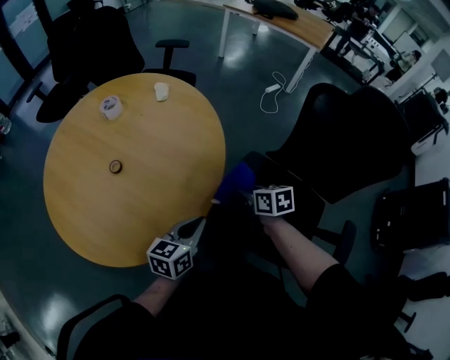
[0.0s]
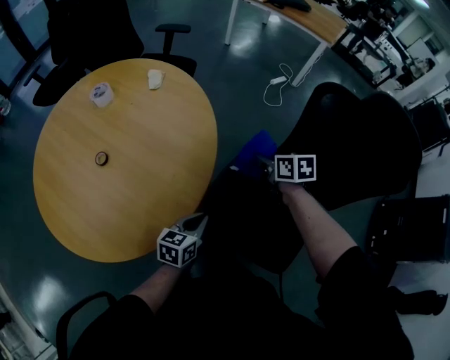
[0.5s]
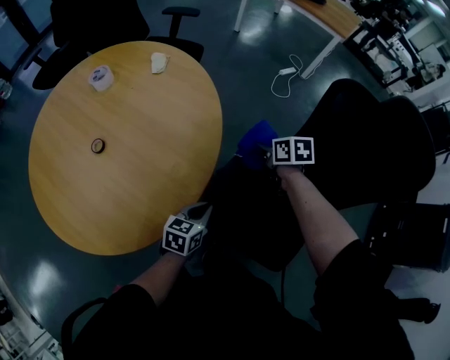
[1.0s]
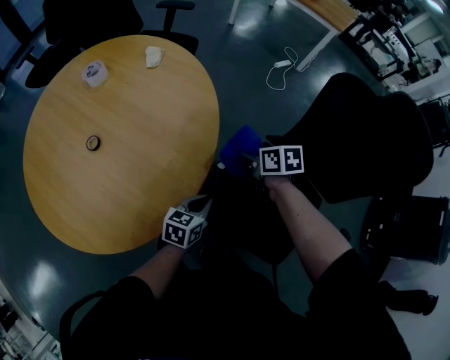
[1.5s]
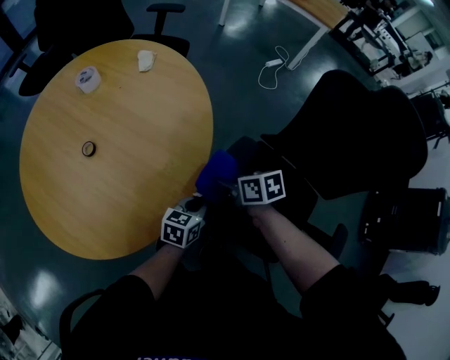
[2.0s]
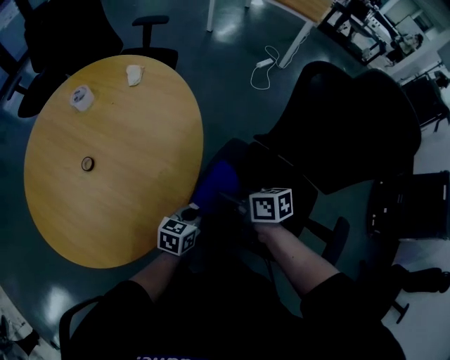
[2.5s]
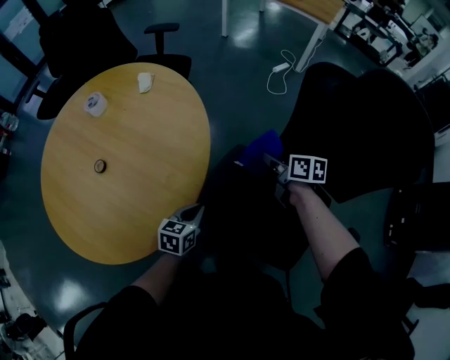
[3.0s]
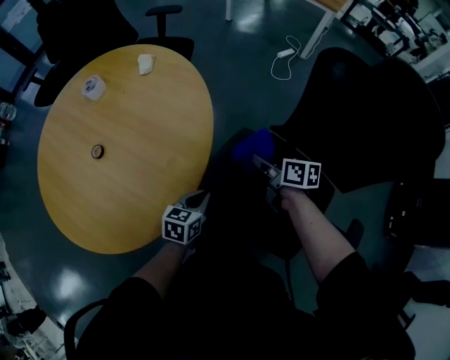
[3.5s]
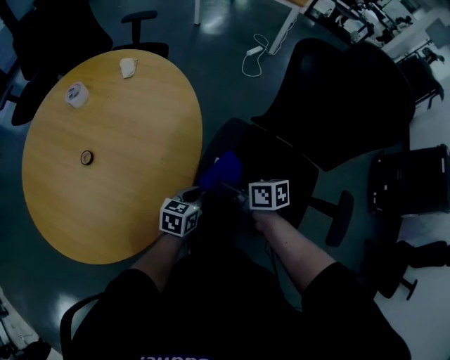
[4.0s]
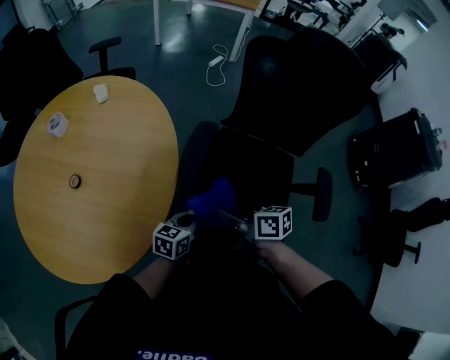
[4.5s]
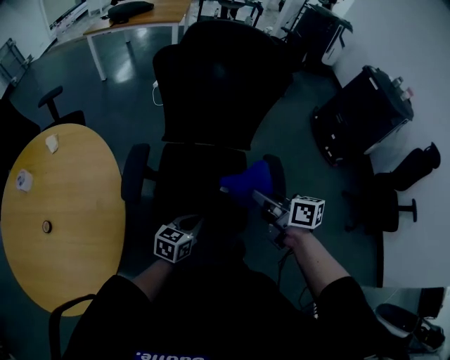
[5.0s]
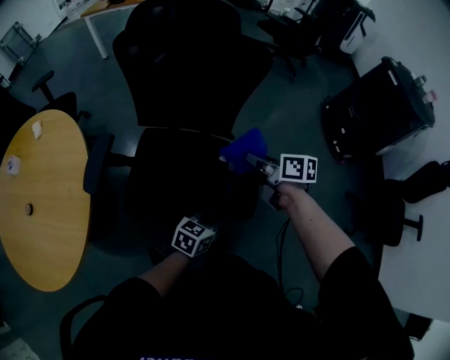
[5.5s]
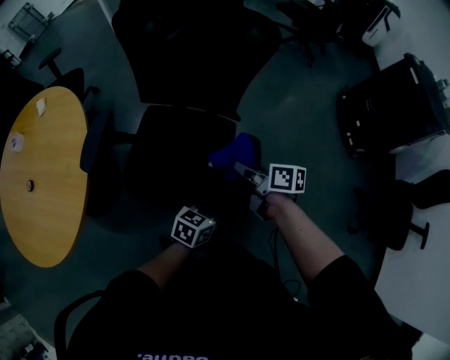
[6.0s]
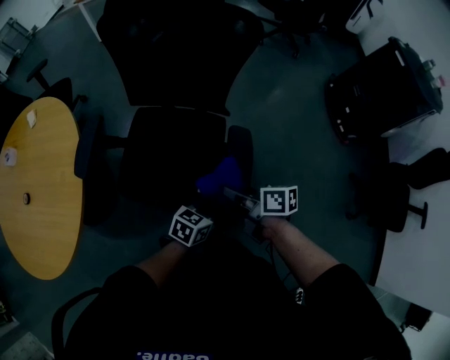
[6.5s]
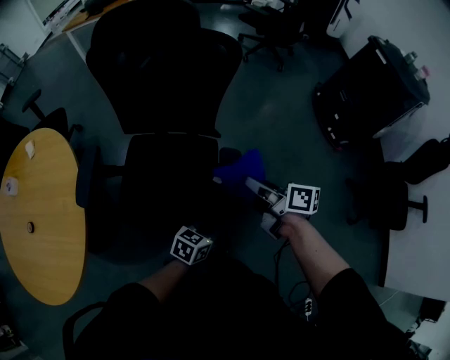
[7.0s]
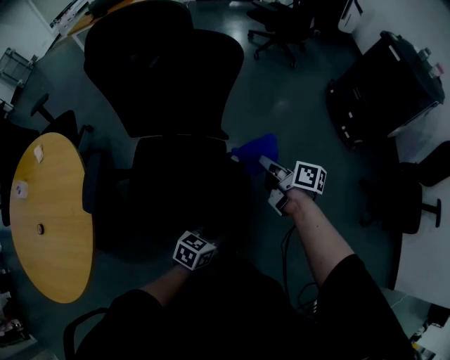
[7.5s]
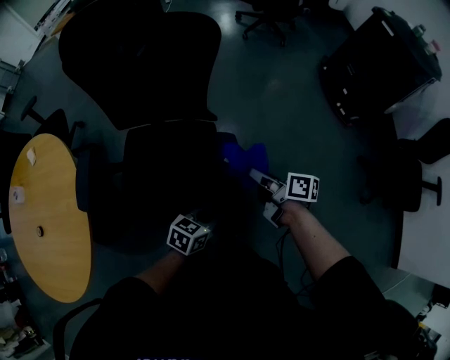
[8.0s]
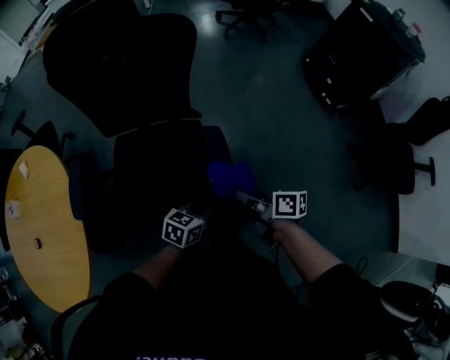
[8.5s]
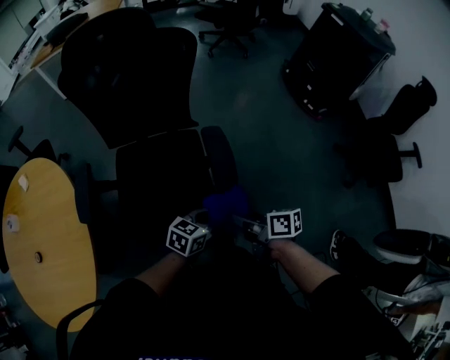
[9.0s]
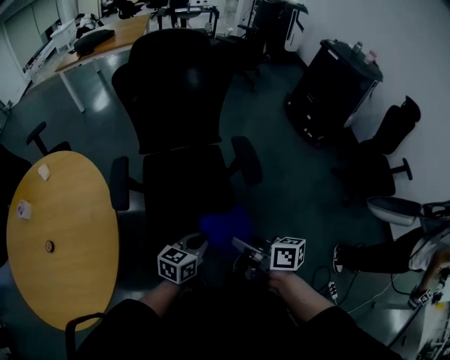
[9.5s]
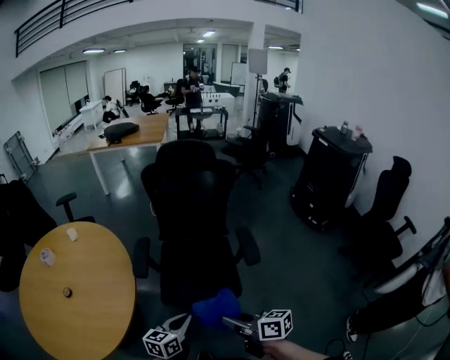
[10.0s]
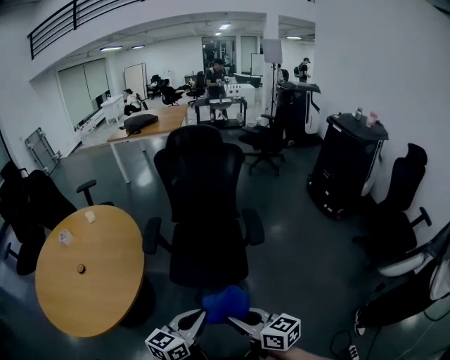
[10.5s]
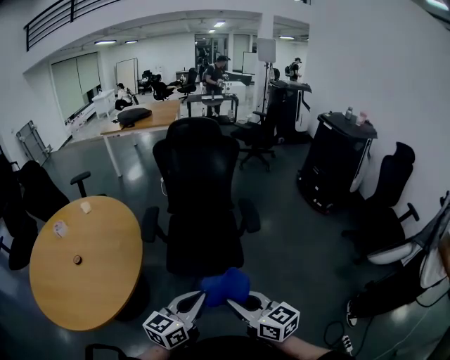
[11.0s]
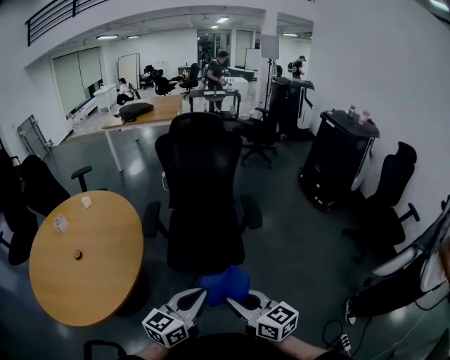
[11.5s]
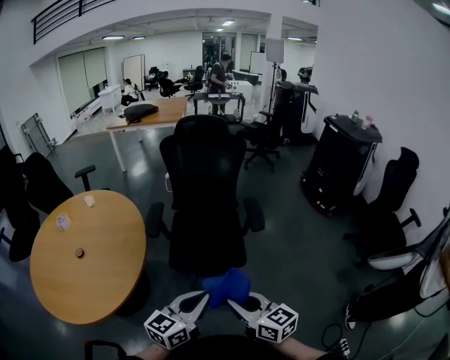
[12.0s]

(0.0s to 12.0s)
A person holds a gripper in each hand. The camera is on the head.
0.0s - 2.0s: The left gripper goes roughly 15 cm downward, to the right and forward, while the right gripper goes forward and returns, about 15 cm each way.
2.0s - 4.0s: The right gripper travels backward by some 5 cm, and moves some 20 cm to the right and comes back.
4.0s - 6.0s: Both grippers are carried about 50 cm. The left gripper turns by approximately 30 degrees. The right gripper changes its angle by about 30 degrees.
6.0s - 8.0s: The right gripper goes forward and backward, about 20 cm each way, reversing 2 times.
8.0s - 10.0s: Both grippers move backward, to the left and upward, some 50 cm. The left gripper turns by some 30 degrees. The right gripper changes its angle by approximately 30 degrees.
10.0s - 12.0s: The left gripper goes some 20 cm backward and upward; the right gripper travels backward by roughly 10 cm, and turns by roughly 30 degrees.

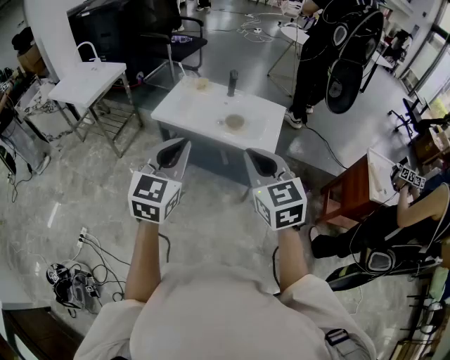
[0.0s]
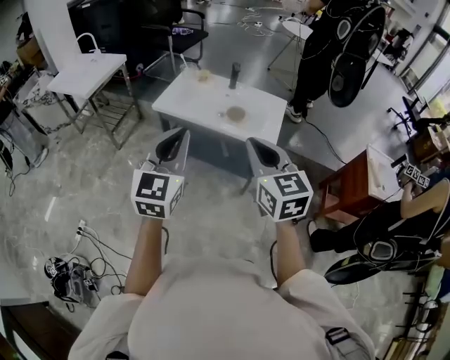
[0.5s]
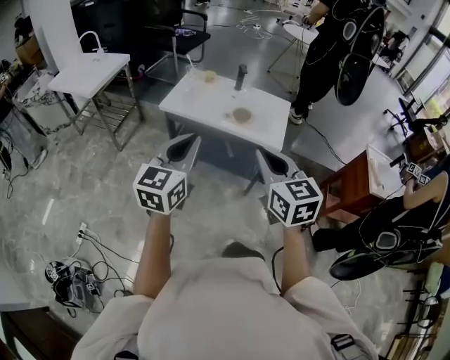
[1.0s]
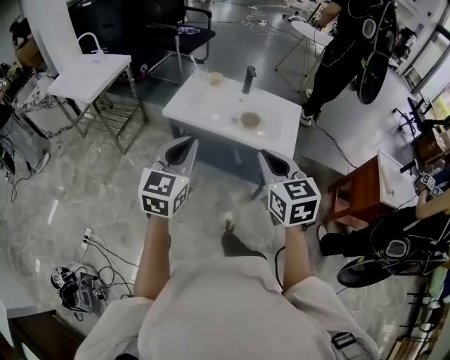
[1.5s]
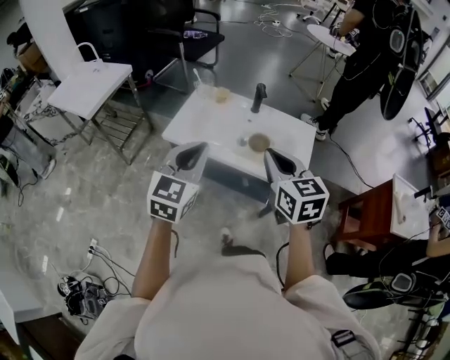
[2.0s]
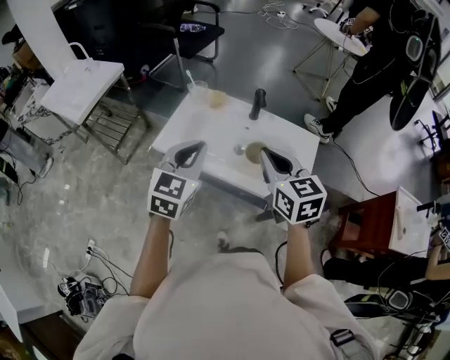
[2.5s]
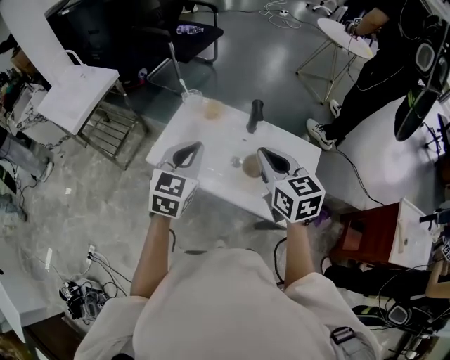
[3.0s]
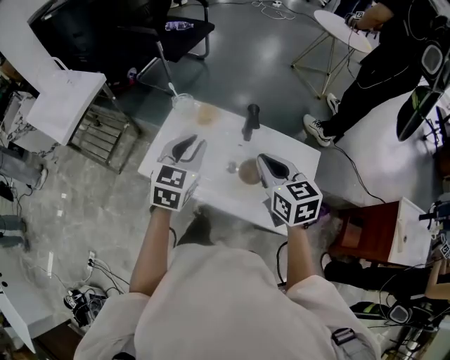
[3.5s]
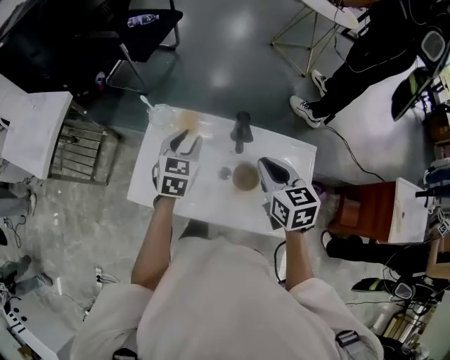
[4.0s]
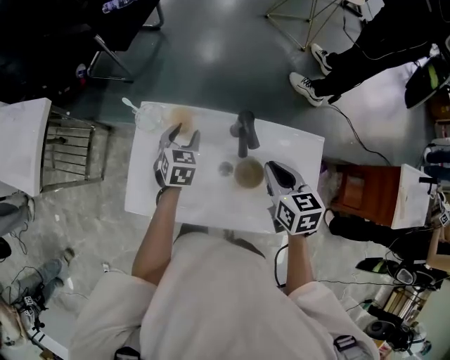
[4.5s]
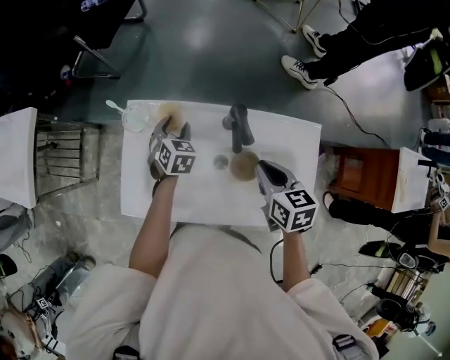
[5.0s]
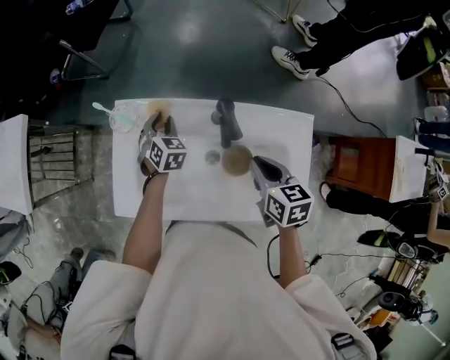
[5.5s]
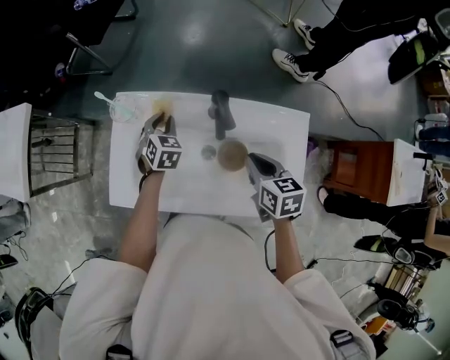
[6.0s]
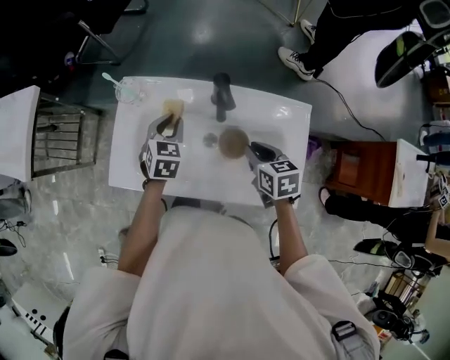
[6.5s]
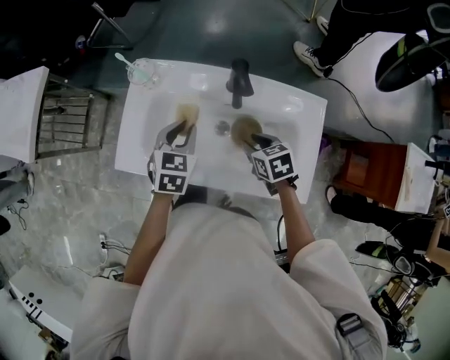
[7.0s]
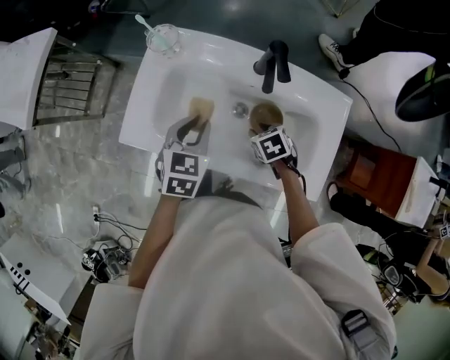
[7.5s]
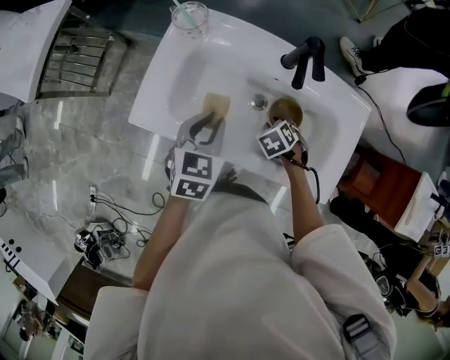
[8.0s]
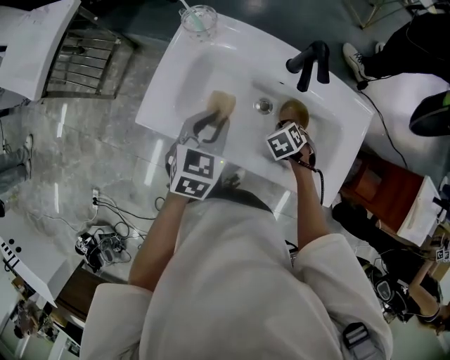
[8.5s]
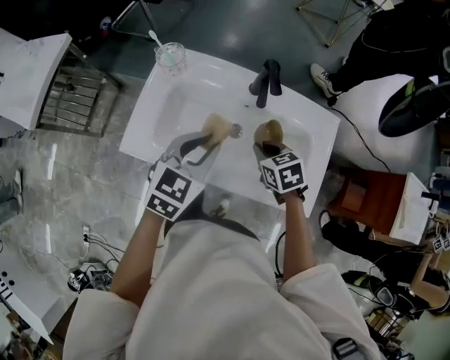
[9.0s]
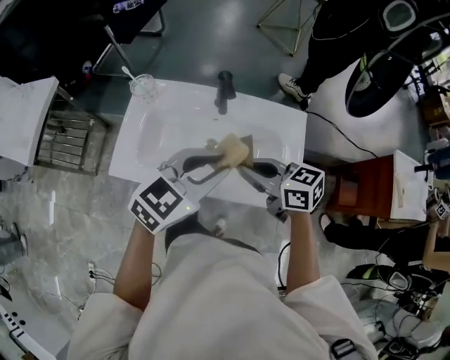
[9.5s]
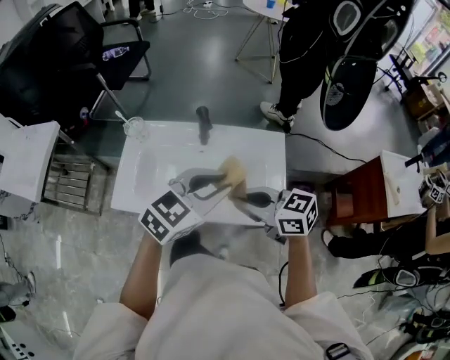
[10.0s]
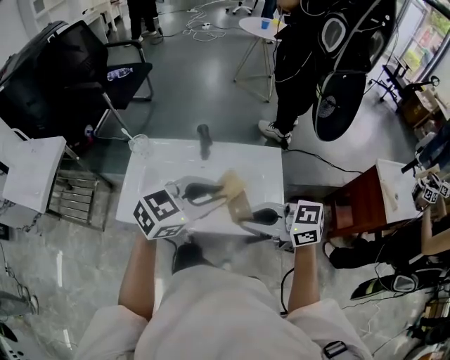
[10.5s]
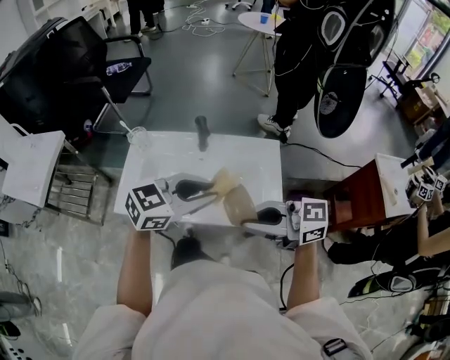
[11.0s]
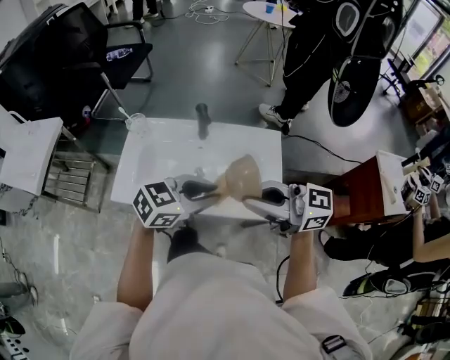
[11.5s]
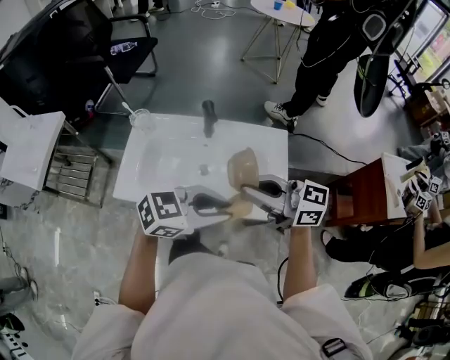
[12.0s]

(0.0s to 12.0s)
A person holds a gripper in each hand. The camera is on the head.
0.0s - 2.0s: Both grippers travel together forward, approximately 25 cm.
2.0s - 4.0s: The grippers both shift forward by approximately 40 cm. The left gripper opens up.
4.0s - 6.0s: The left gripper shifts some 20 cm downward and forward, while the right gripper heads downward, covering some 15 cm.
6.0s - 8.0s: The right gripper heads downward, covering about 20 cm, and tips its fingers downward by some 40 degrees. The left gripper moves about 20 cm, and swivels roughly 20 degrees.
8.0s - 10.0s: The right gripper travels upward by roughly 35 cm, angles its fingers upward, by some 60 degrees, and closes. The left gripper changes place by roughly 35 cm, and rotates approximately 50 degrees.
10.0s - 12.0s: The left gripper changes place by some 10 cm, and rotates about 30 degrees. The right gripper moves upward, about 5 cm, and changes its angle by some 20 degrees.

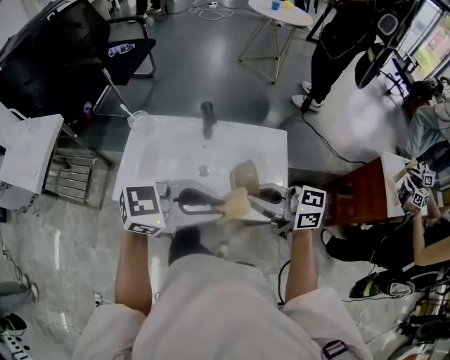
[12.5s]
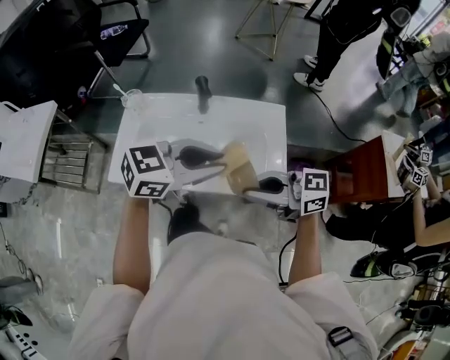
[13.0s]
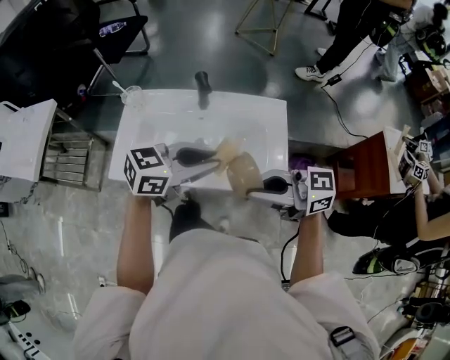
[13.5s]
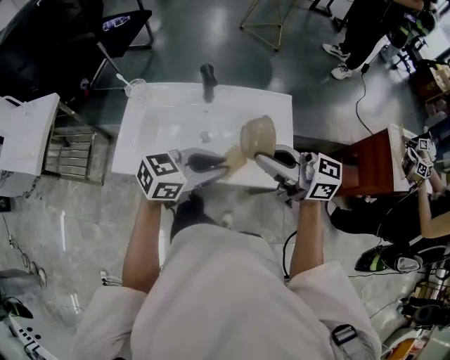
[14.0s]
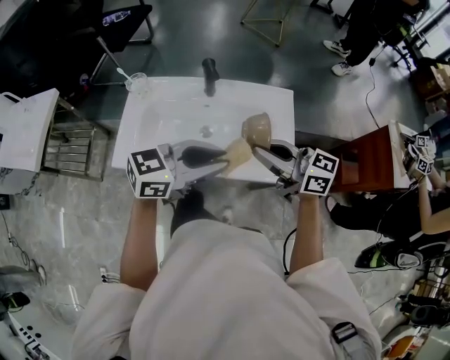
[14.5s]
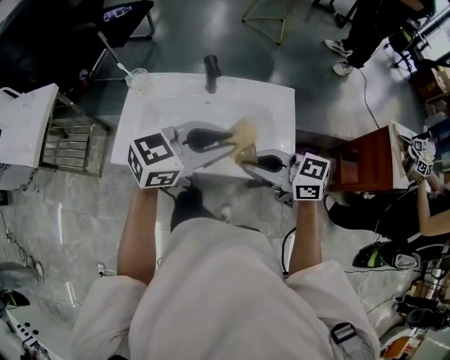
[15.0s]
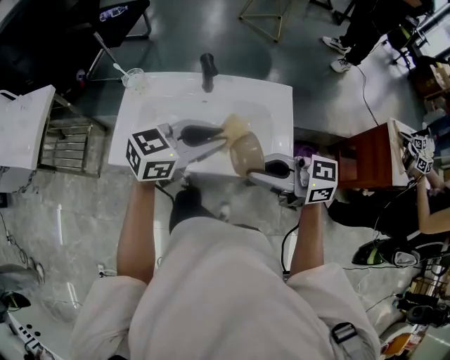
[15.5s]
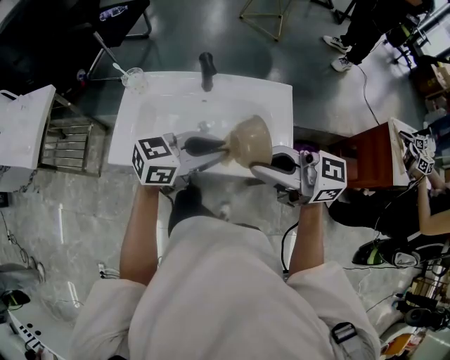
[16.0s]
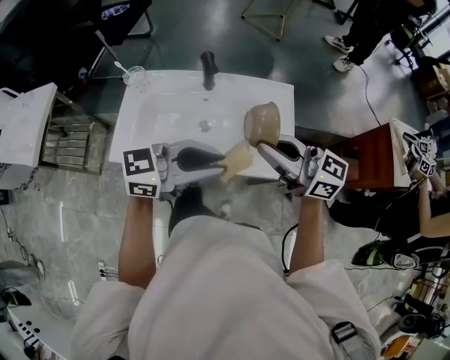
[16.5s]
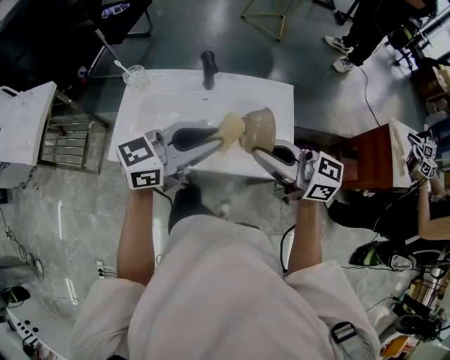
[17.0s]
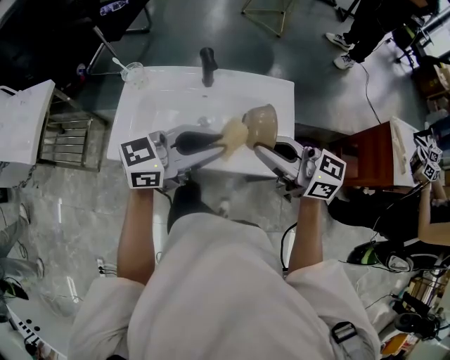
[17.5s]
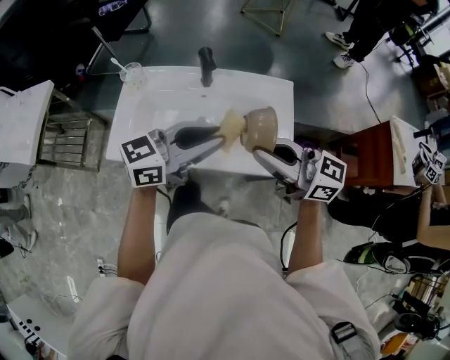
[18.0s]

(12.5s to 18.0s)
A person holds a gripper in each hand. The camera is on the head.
12.5s - 14.5s: The left gripper heads downward, covering approximately 5 cm.
14.5s - 16.0s: The right gripper is displaced upward by about 5 cm.
16.0s - 18.0s: The left gripper moves some 5 cm.
